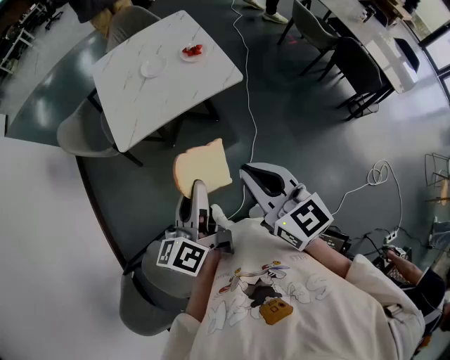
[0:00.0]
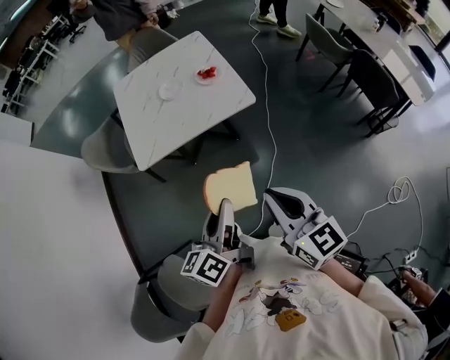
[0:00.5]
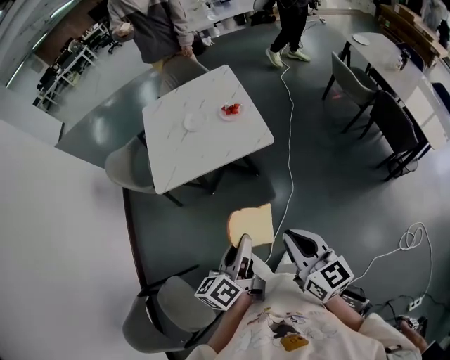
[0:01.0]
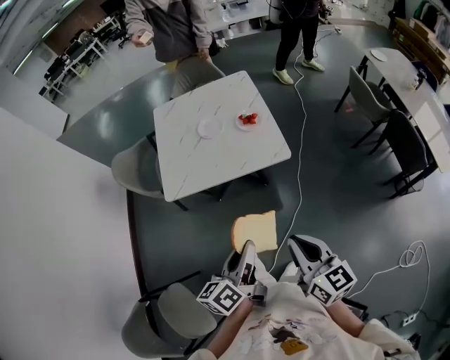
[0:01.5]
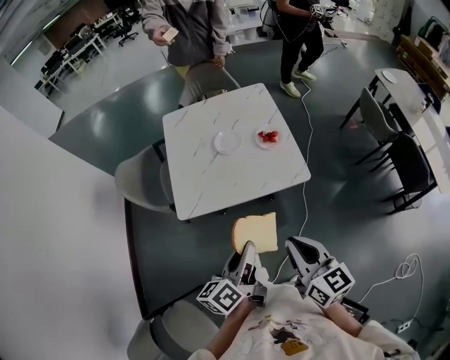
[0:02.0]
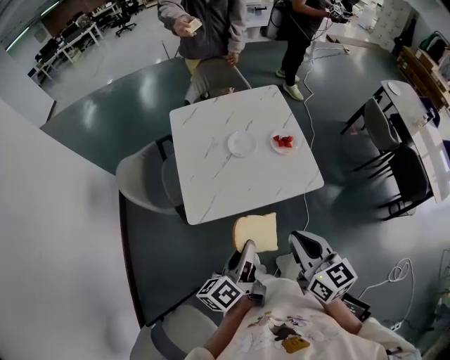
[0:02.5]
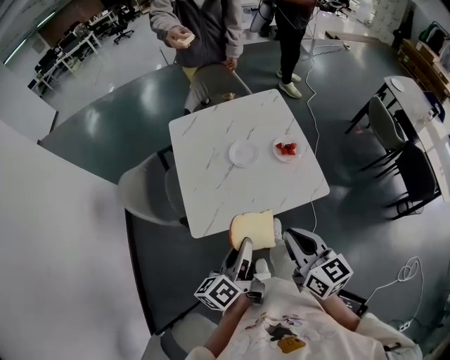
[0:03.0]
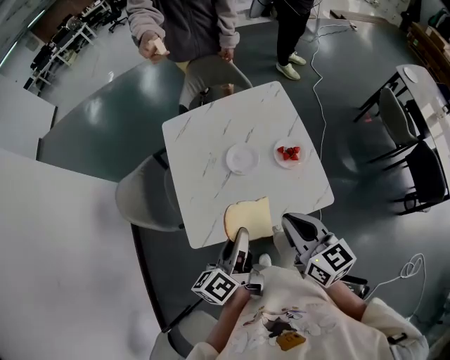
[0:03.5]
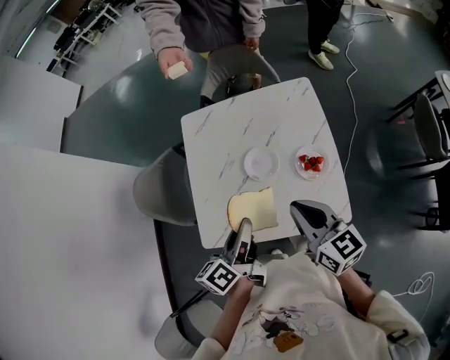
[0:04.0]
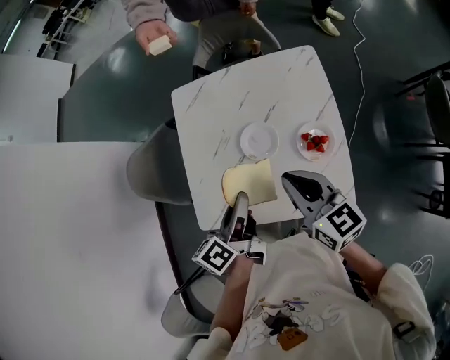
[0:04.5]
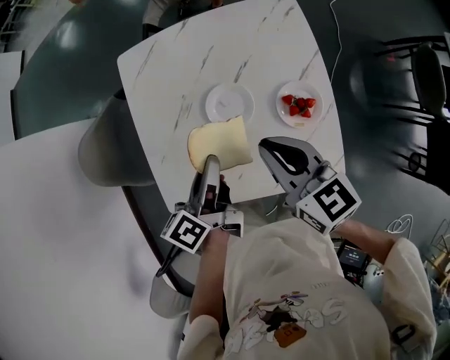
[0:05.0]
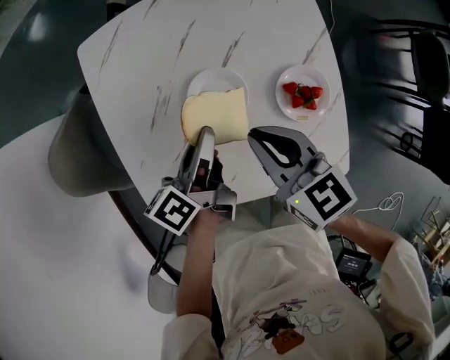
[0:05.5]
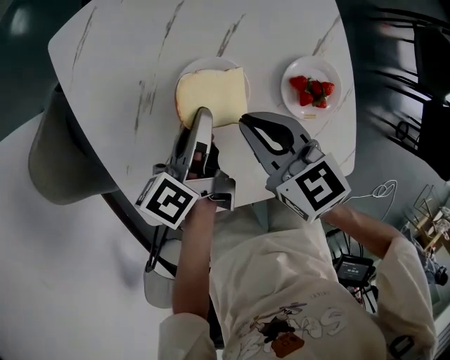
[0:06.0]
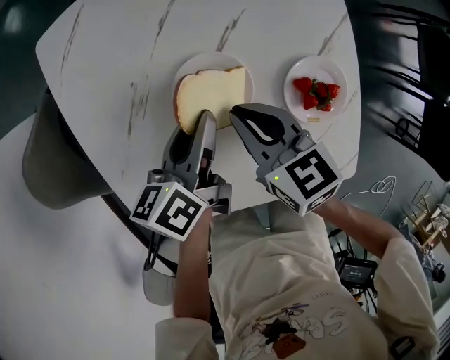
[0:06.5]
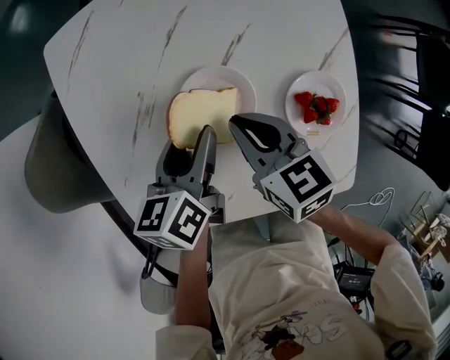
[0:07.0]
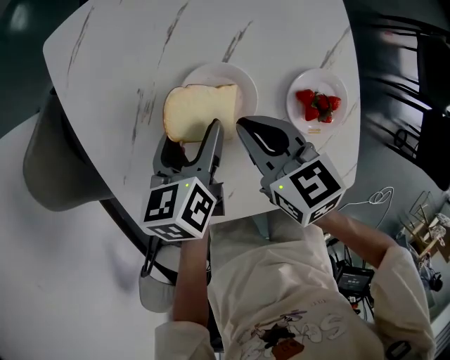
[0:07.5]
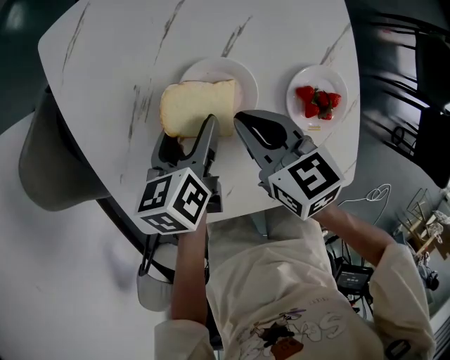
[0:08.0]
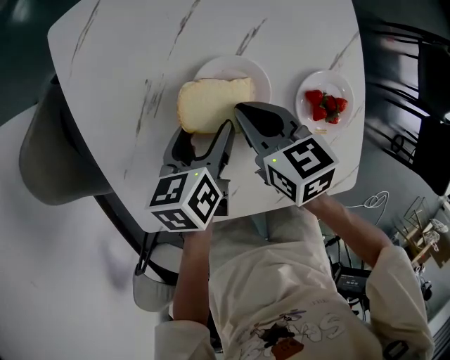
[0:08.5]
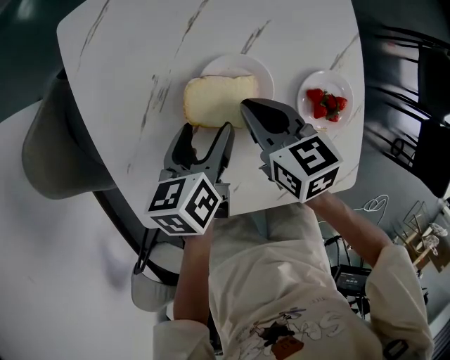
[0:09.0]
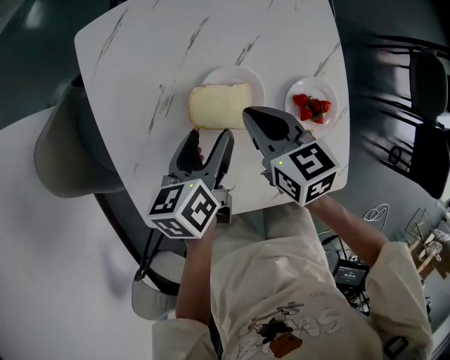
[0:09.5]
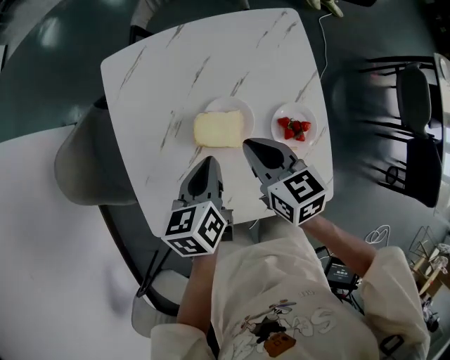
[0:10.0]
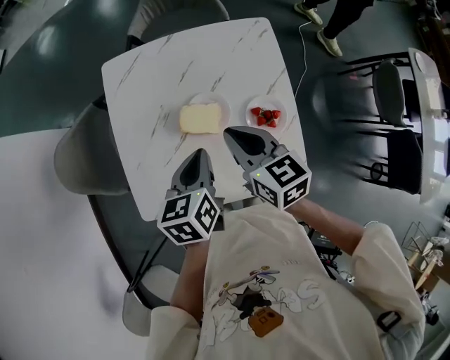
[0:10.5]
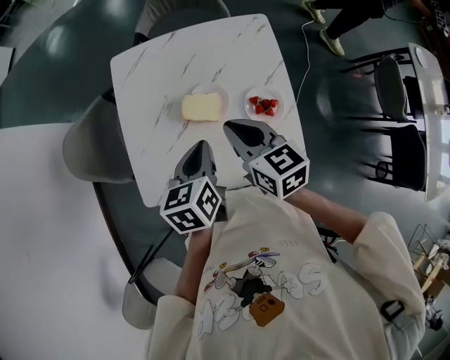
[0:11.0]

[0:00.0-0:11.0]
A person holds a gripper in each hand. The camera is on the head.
0:00.0 to 0:02.0: The two grippers go roughly 15 cm forward.
0:02.0 to 0:03.5: The two grippers go approximately 25 cm forward.
0:03.5 to 0:05.5: Both grippers travel together forward and downward, approximately 30 cm.
0:05.5 to 0:07.5: The grippers both shift downward by some 10 cm. The left gripper rotates roughly 40 degrees, and opens.
0:07.5 to 0:09.0: The grippers move only a little.
0:09.0 to 0:11.0: Both grippers move upward and backward, approximately 25 cm. The left gripper closes up.

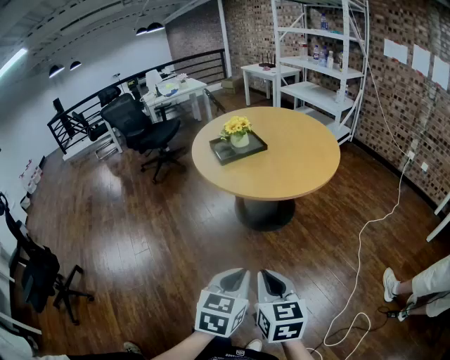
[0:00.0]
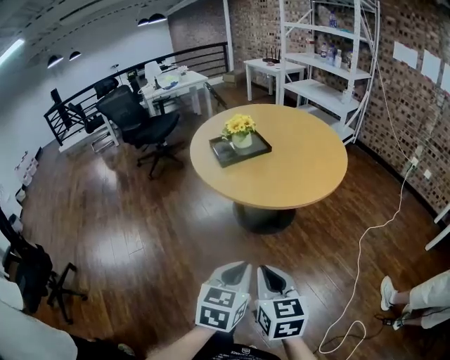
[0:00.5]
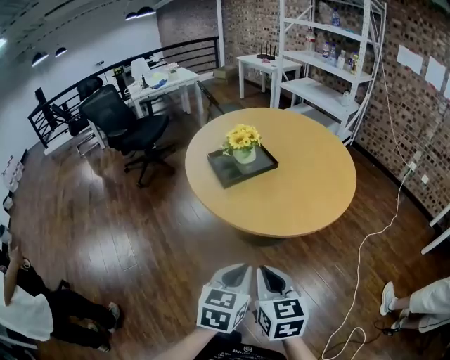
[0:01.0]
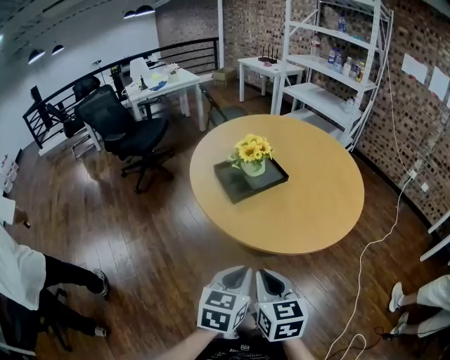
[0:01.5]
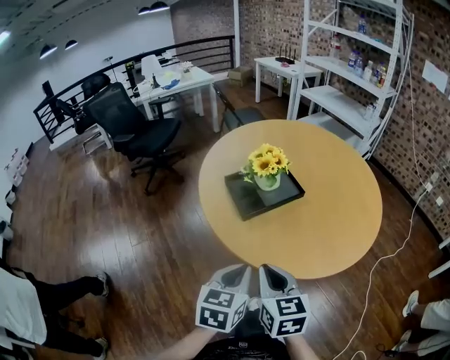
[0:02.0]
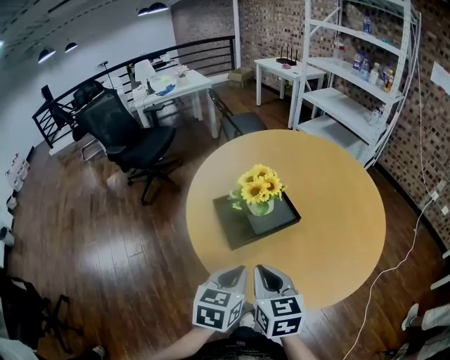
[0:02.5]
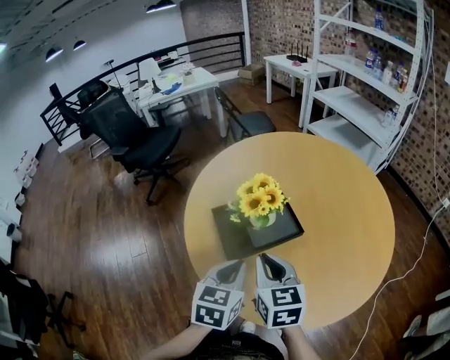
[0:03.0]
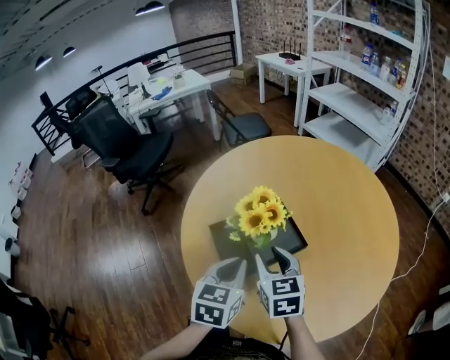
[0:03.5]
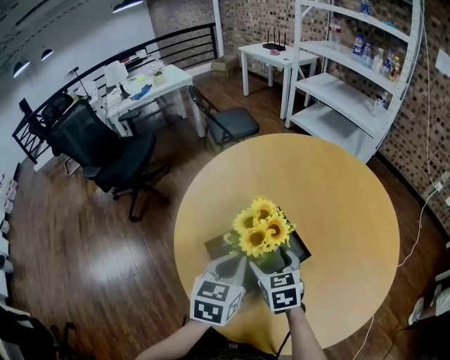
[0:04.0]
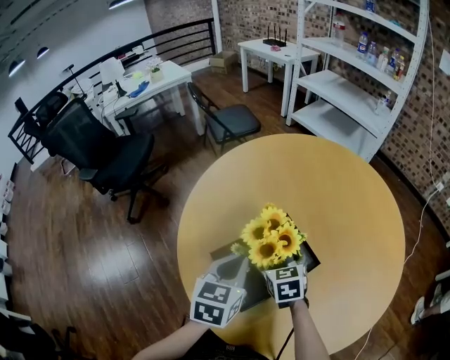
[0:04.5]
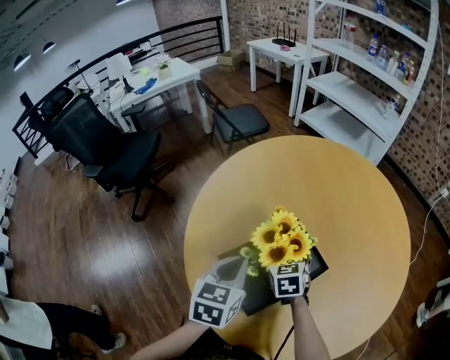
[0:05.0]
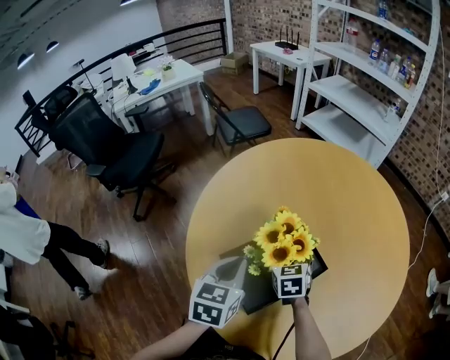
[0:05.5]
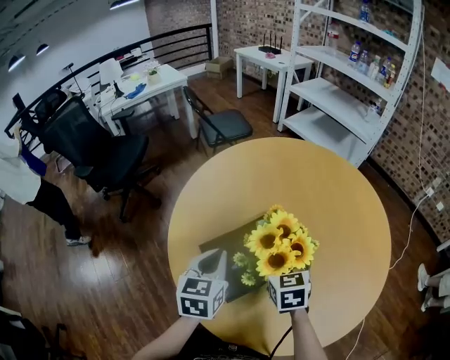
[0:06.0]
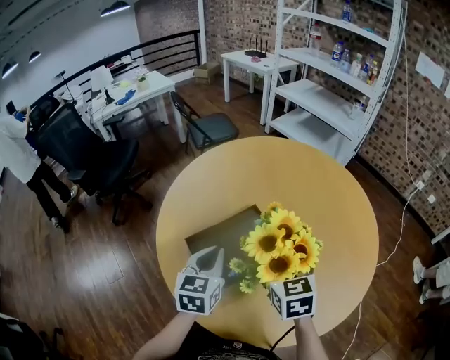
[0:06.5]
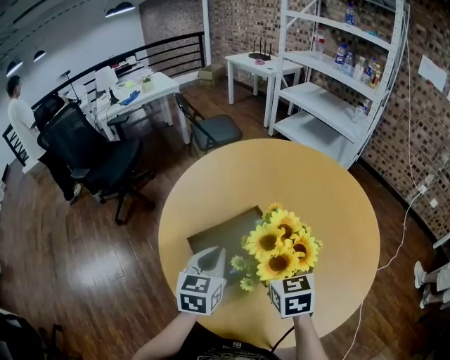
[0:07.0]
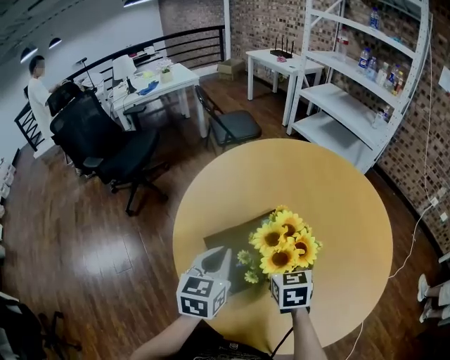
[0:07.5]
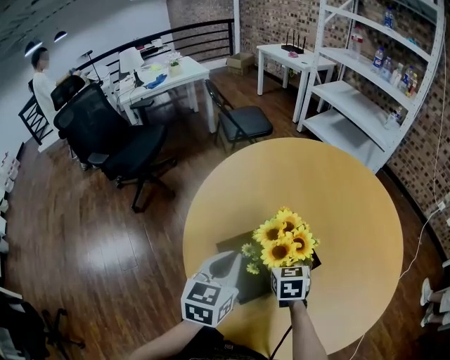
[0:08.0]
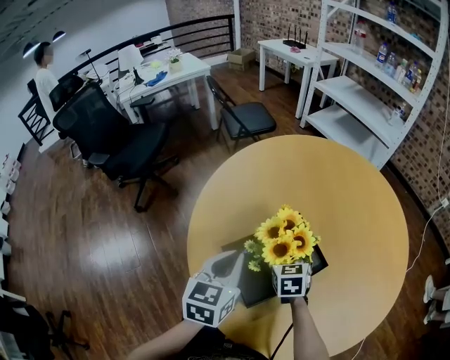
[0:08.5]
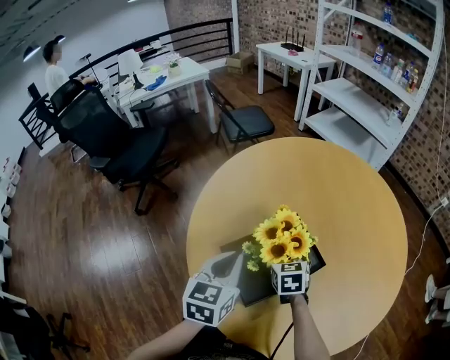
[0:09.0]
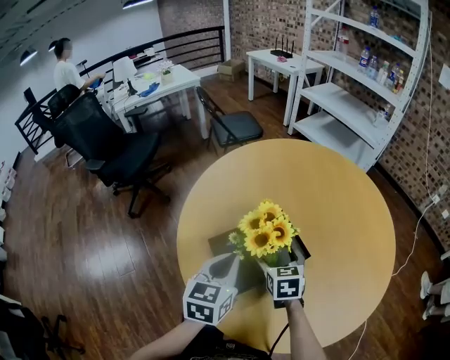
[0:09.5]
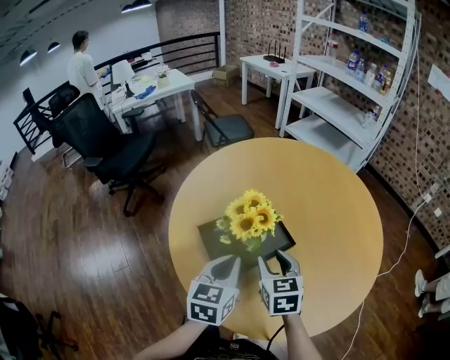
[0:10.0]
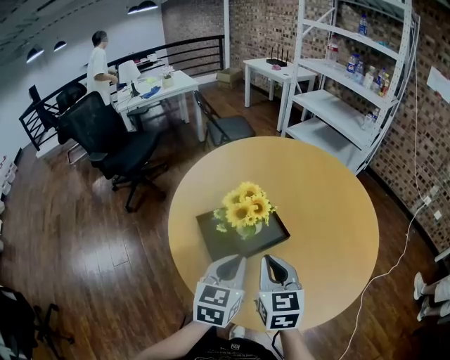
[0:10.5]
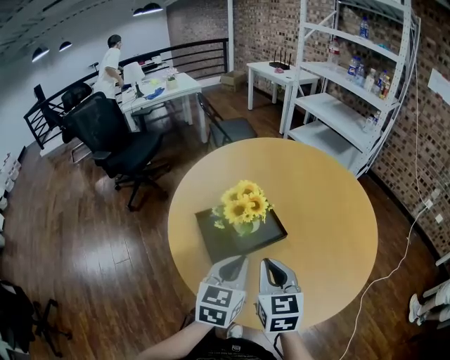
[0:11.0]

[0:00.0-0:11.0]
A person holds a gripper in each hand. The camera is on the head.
0:00.0 to 0:02.0: The pair of grippers is taken forward and to the left, approximately 40 cm.
0:02.0 to 0:03.5: The two grippers go some 30 cm forward.
0:03.5 to 0:05.5: The left gripper shifts approximately 15 cm forward and to the left; the right gripper moves forward and downward, roughly 20 cm, and opens up.
0:05.5 to 0:07.5: The right gripper shifts roughly 10 cm backward and upward.
0:07.5 to 0:09.0: The right gripper goes roughly 10 cm downward and forward.
0:09.0 to 0:11.0: The left gripper is displaced to the right and backward by some 20 cm. The right gripper heads backward and upward, covering about 25 cm, rotates roughly 20 degrees, and closes its fingers.

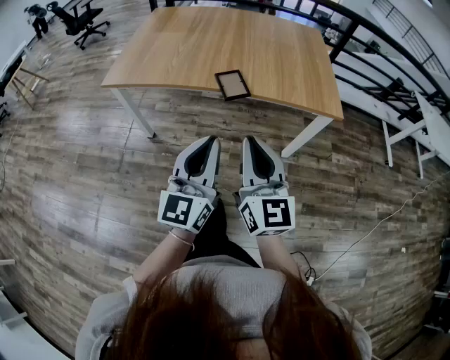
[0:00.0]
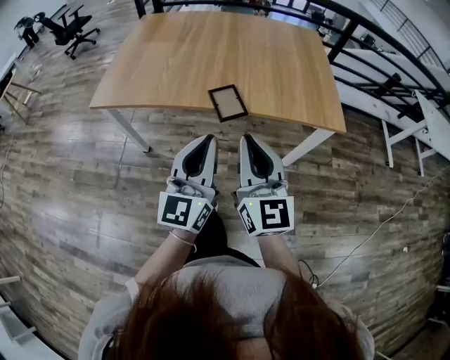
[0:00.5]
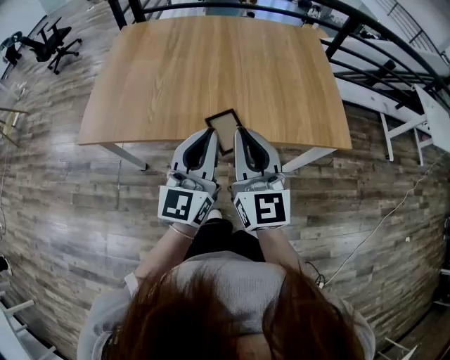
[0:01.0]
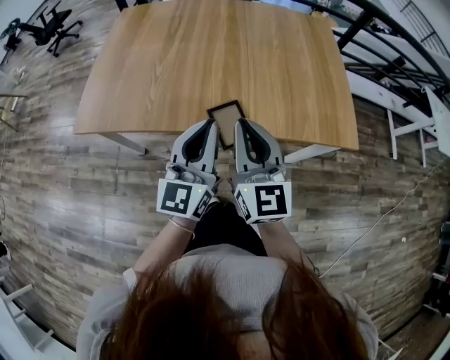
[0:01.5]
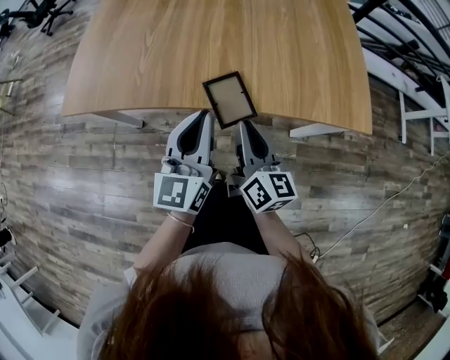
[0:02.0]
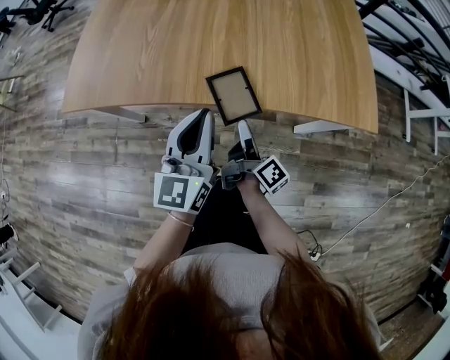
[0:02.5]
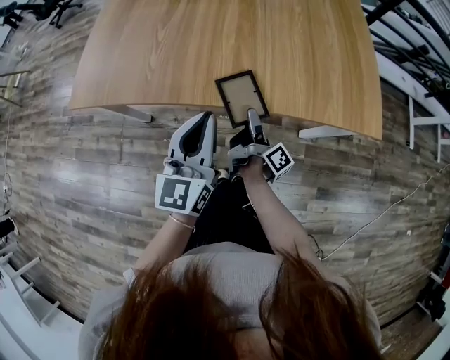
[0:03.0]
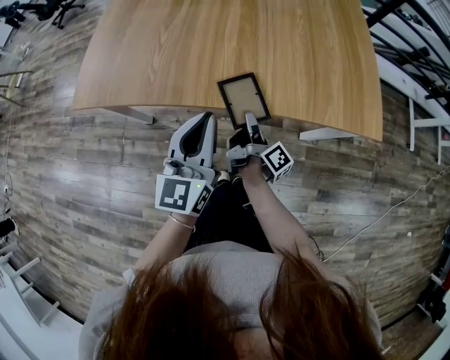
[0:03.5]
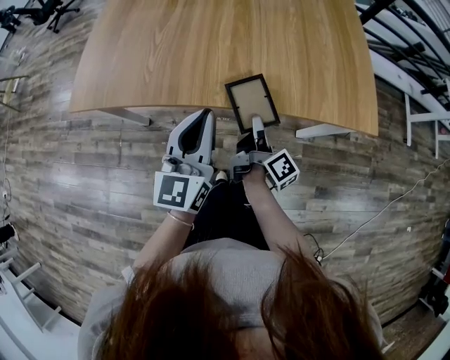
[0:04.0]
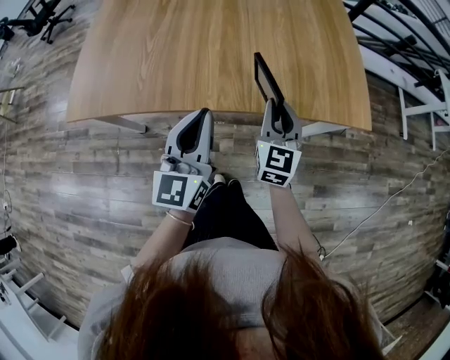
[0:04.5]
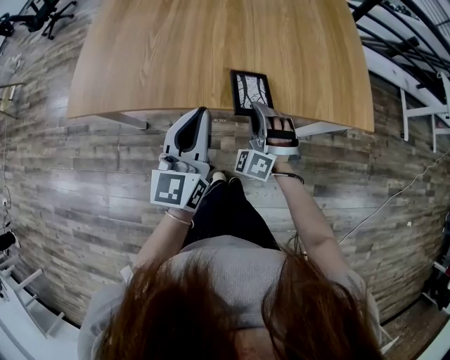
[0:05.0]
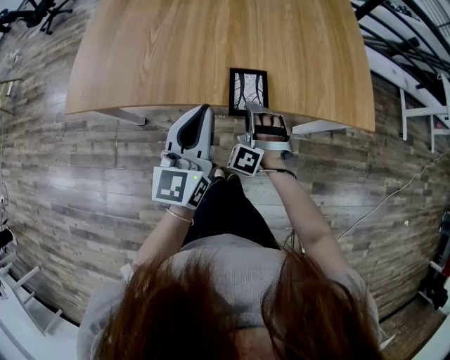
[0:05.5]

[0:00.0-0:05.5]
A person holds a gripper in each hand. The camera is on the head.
0:00.0 to 0:02.0: The right gripper shifts approximately 35 cm forward and downward, and changes its angle by some 30 degrees; the left gripper is displaced forward by about 30 cm.
0:02.0 to 0:03.5: The right gripper travels downward by about 15 cm, rolls clockwise, seen from behind, by roughly 60 degrees, and opens, then closes once more.
0:03.5 to 0:05.5: The right gripper moves some 15 cm upward and comes back, and rolls counterclockwise, seen from behind, by some 160 degrees.
